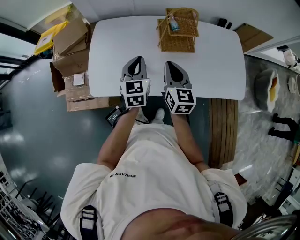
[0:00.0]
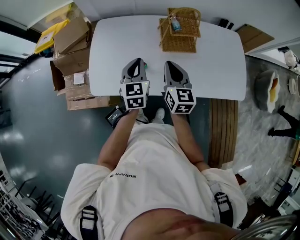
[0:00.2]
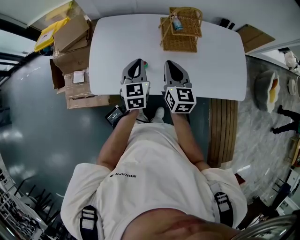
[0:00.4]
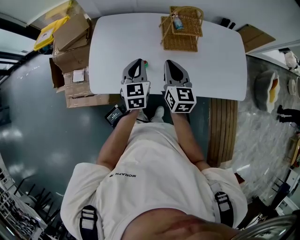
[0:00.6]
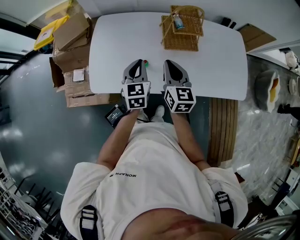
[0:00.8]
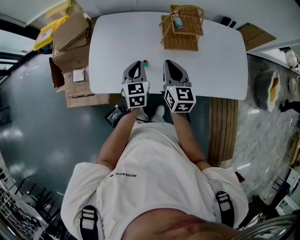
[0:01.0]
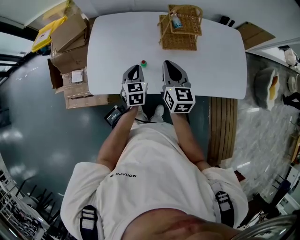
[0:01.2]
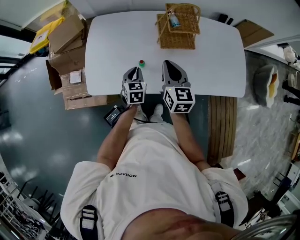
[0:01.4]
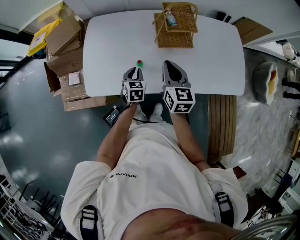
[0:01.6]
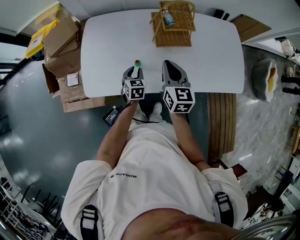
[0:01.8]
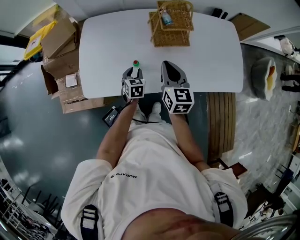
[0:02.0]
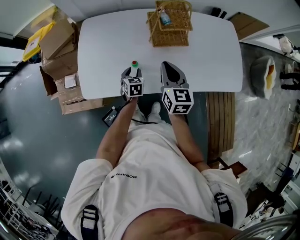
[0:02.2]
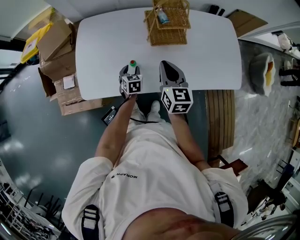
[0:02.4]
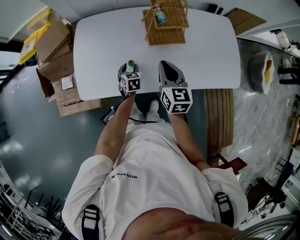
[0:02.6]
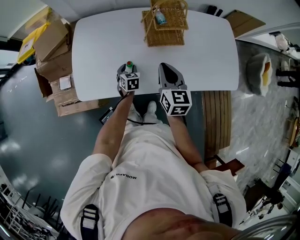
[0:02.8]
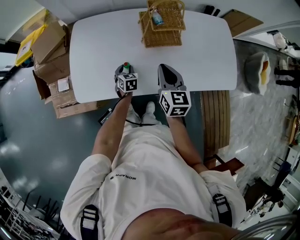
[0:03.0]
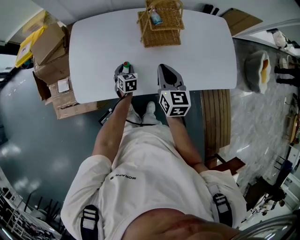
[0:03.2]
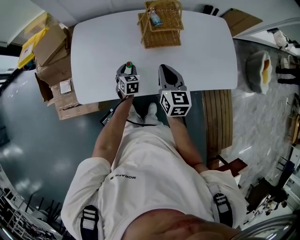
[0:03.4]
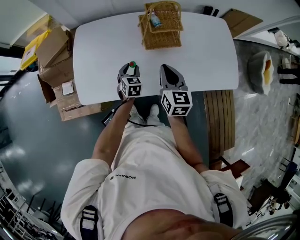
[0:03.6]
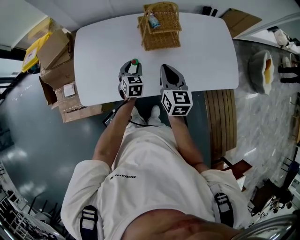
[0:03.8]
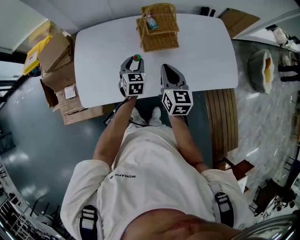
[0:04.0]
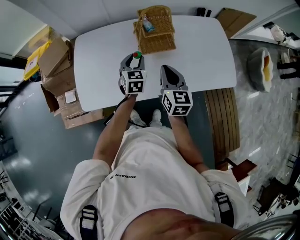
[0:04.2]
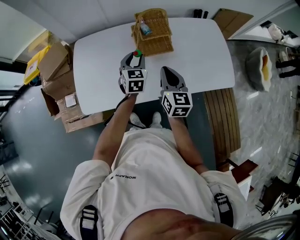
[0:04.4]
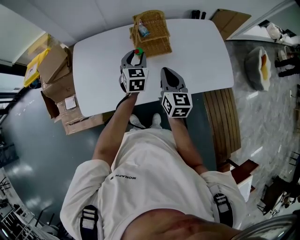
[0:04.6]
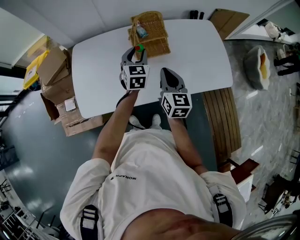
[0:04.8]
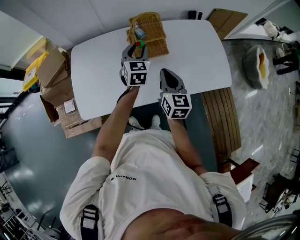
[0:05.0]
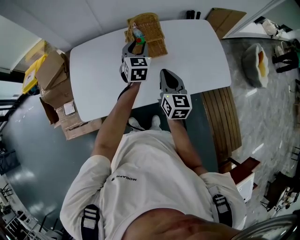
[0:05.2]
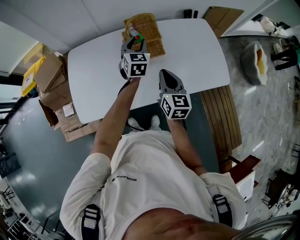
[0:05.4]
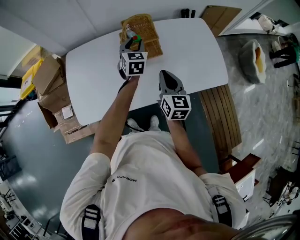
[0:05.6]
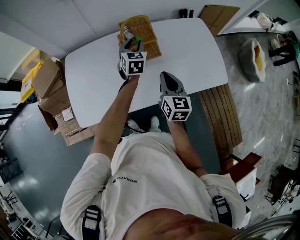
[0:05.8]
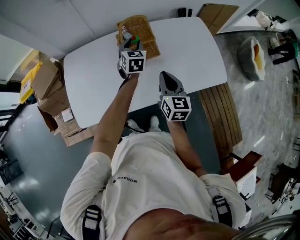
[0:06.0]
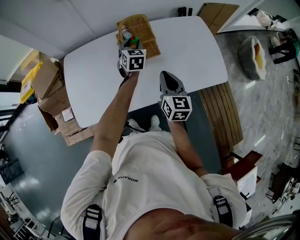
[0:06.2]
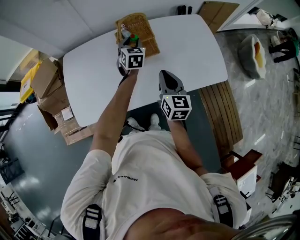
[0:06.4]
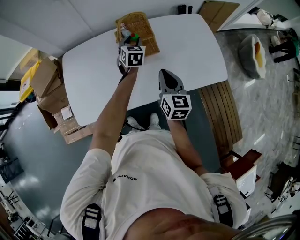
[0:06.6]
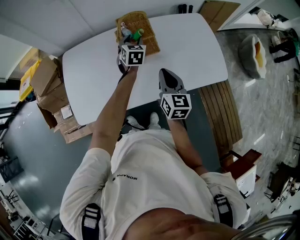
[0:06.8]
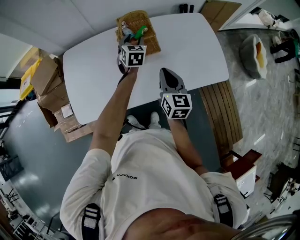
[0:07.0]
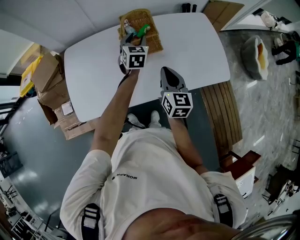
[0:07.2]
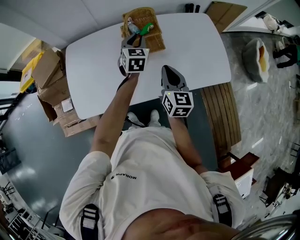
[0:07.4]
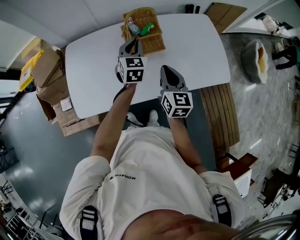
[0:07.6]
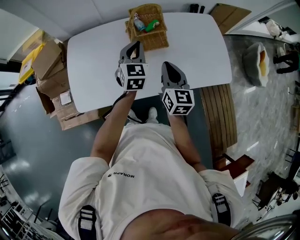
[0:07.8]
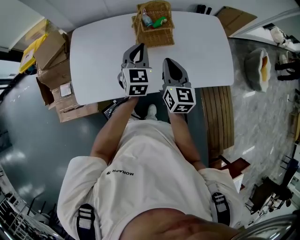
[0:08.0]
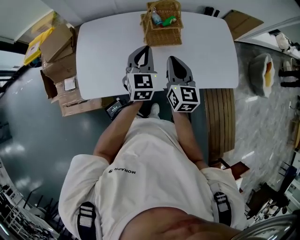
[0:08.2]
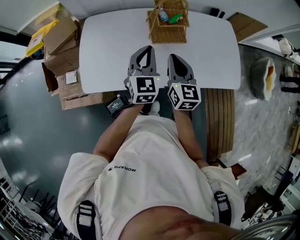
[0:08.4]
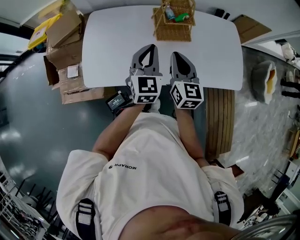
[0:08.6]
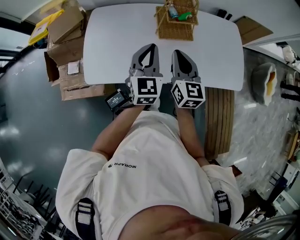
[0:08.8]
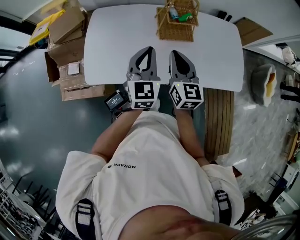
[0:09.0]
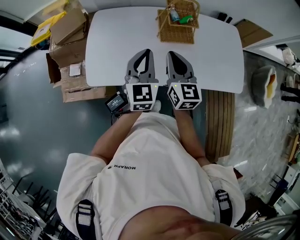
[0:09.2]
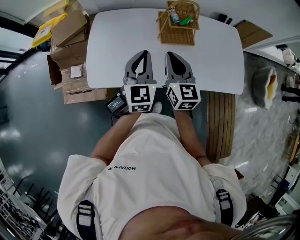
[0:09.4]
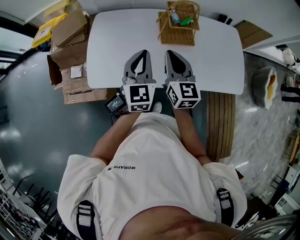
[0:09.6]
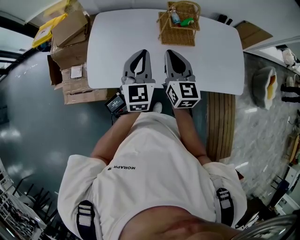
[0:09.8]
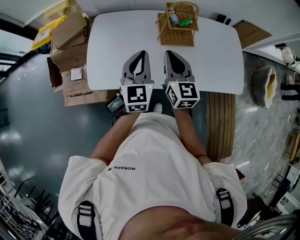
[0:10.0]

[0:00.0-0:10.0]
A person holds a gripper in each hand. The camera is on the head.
0:00.0 to 0:01.4: The left gripper is displaced downward by about 15 cm.
0:01.4 to 0:02.8: The left gripper shifts about 10 cm downward, and opens.
0:02.8 to 0:04.2: The left gripper heads upward and to the right, covering roughly 20 cm, and changes its angle by roughly 20 degrees; the right gripper shifts by approximately 5 cm.
0:04.2 to 0:05.8: The left gripper travels forward, to the right and upward by some 15 cm, while the right gripper travels to the right by some 5 cm.
0:05.8 to 0:07.2: The grippers stay close to where they were, moving slightly.
0:07.2 to 0:08.6: The left gripper shifts approximately 25 cm backward, to the left and upward, and closes up. The right gripper goes about 10 cm to the left.
0:08.6 to 0:10.0: The grippers both shift to the left by roughly 5 cm.

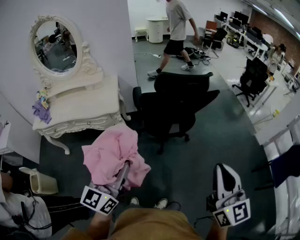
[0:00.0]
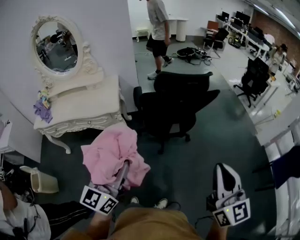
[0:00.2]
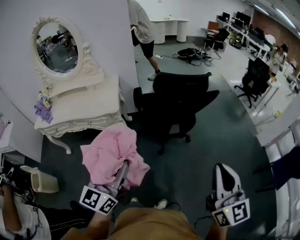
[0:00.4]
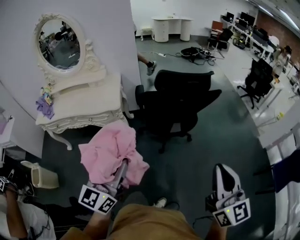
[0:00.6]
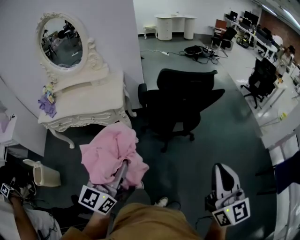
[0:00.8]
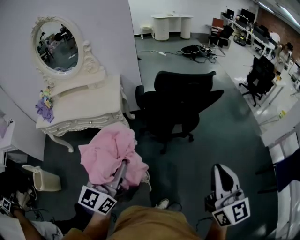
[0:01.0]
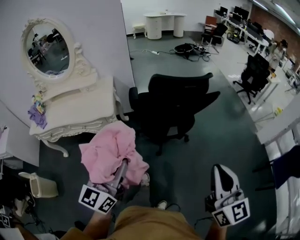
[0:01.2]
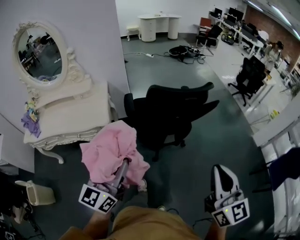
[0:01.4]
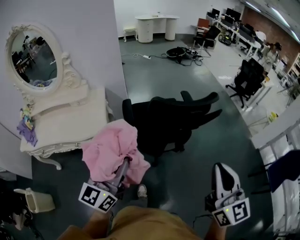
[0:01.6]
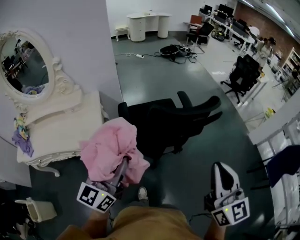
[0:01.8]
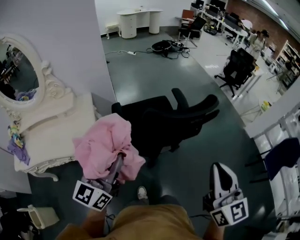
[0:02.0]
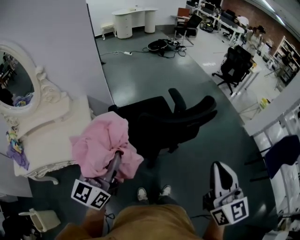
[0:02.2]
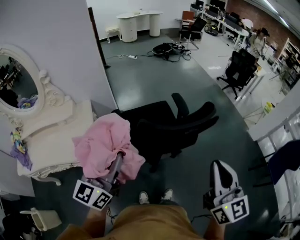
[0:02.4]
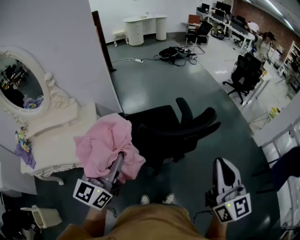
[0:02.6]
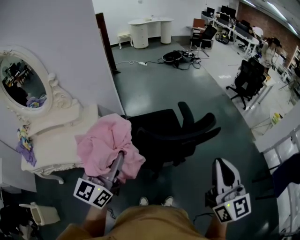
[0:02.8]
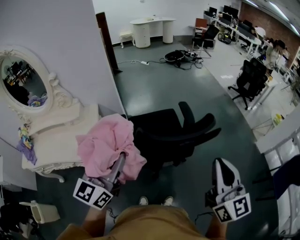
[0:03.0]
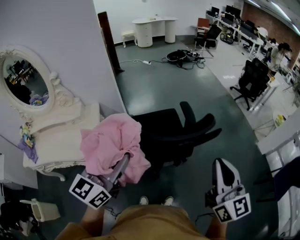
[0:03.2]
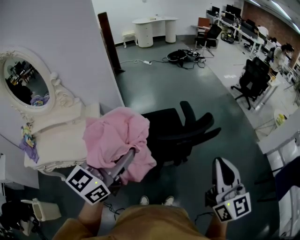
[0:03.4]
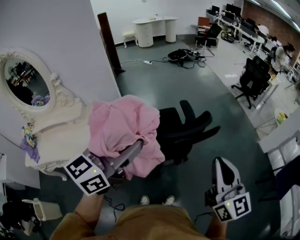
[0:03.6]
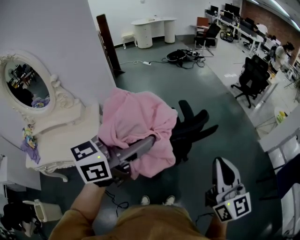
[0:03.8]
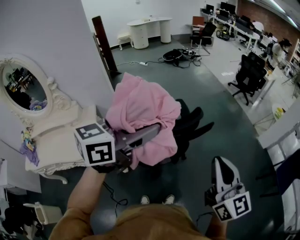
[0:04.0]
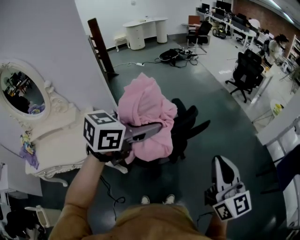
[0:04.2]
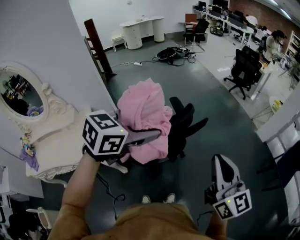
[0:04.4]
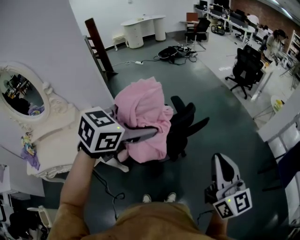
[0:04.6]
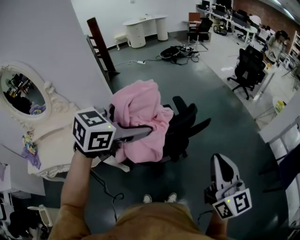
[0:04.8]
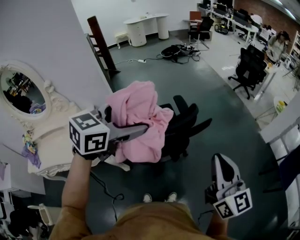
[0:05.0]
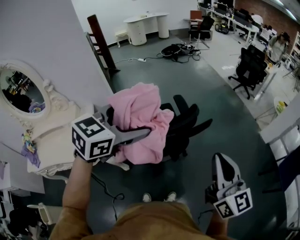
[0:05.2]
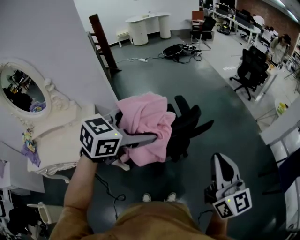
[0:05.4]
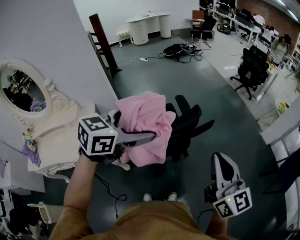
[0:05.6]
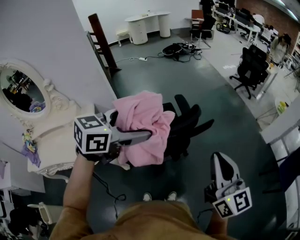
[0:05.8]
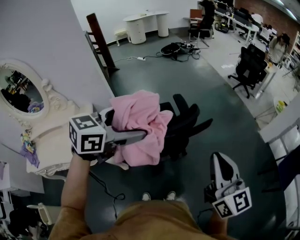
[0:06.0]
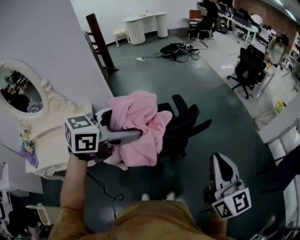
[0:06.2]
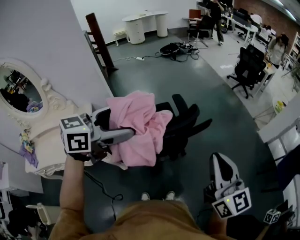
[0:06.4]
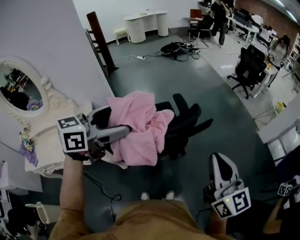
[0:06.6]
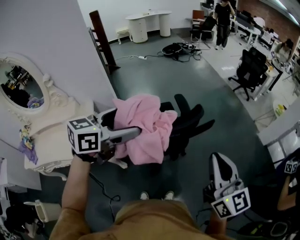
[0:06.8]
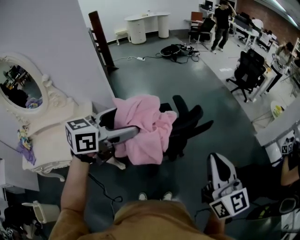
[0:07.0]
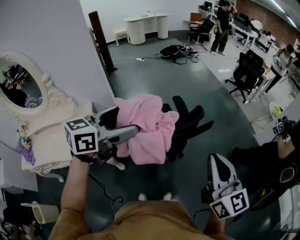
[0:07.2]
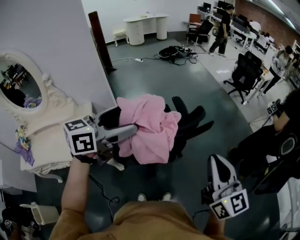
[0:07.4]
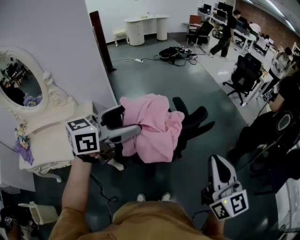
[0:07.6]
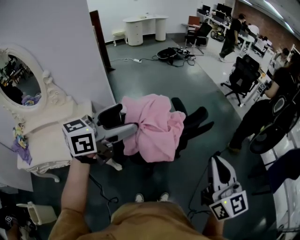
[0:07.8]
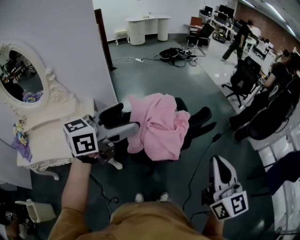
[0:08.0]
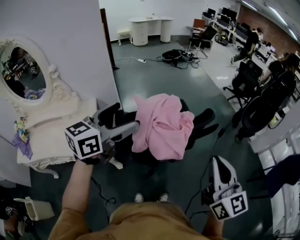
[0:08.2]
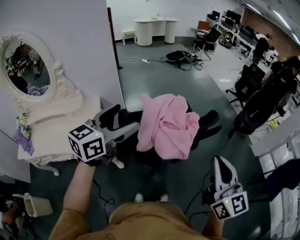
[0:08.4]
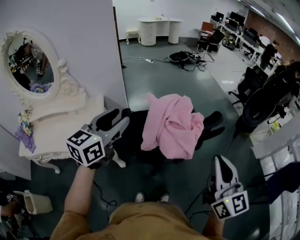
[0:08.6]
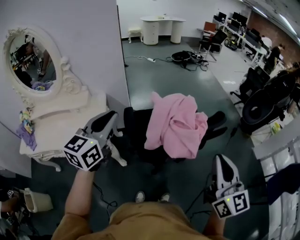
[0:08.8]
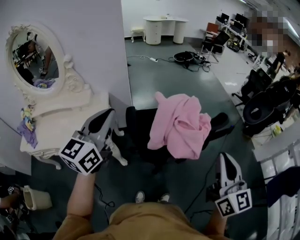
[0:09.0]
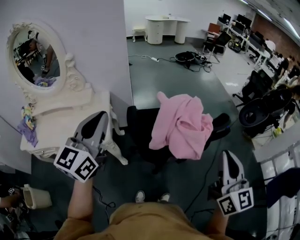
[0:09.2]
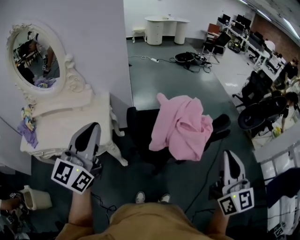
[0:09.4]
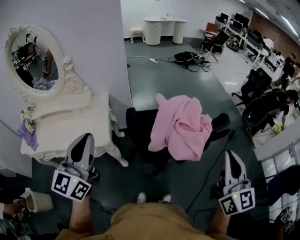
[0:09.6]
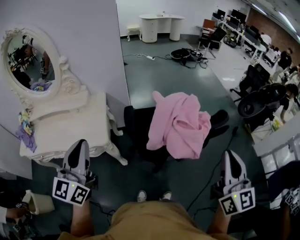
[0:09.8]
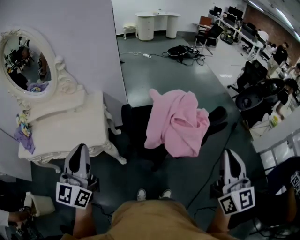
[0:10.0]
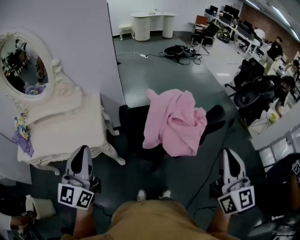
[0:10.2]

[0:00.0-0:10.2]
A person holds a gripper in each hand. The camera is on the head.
0:00.0 to 0:01.4: The two grippers go about 15 cm forward.
0:01.4 to 0:03.0: The grippers both shift forward by approximately 25 cm.
0:03.0 to 0:04.4: The left gripper is displaced to the right and forward by some 25 cm, points its fingers some 30 degrees further downward, and opens up, while the right gripper moves to the right, some 10 cm.
0:04.4 to 0:05.8: The left gripper goes roughly 5 cm to the left, while the right gripper ends up about 5 cm from where it was.
0:05.8 to 0:07.2: The left gripper moves to the left, about 5 cm.
0:07.2 to 0:08.8: The right gripper is displaced to the left by roughly 10 cm. The left gripper is displaced to the left and backward by approximately 20 cm, turns by about 30 degrees, and closes.
0:08.8 to 0:10.2: The left gripper travels backward and to the left by approximately 10 cm.

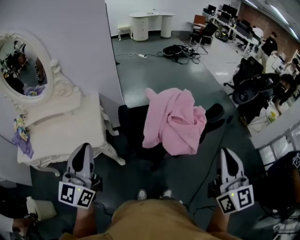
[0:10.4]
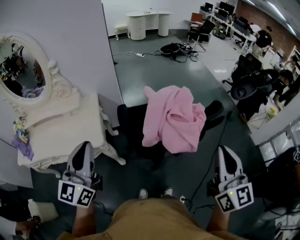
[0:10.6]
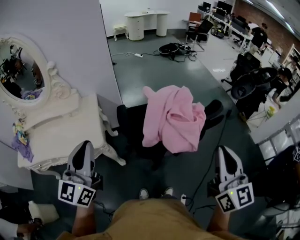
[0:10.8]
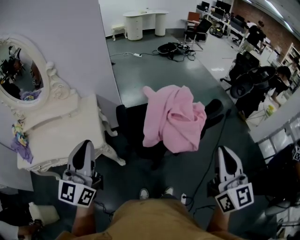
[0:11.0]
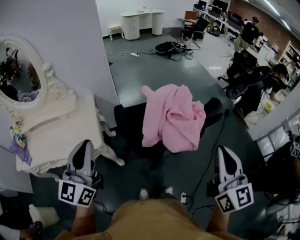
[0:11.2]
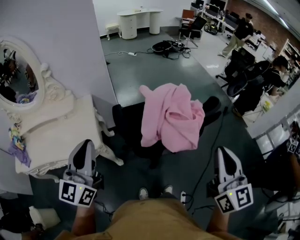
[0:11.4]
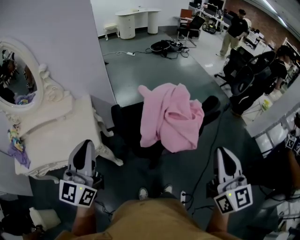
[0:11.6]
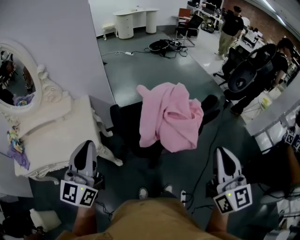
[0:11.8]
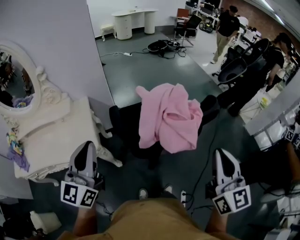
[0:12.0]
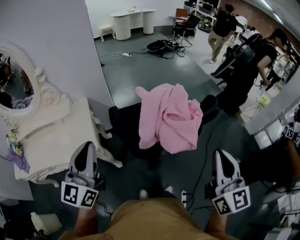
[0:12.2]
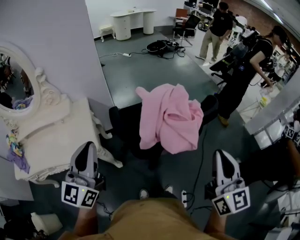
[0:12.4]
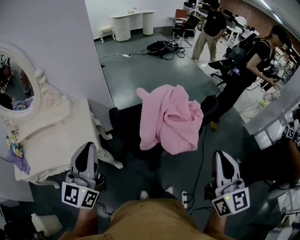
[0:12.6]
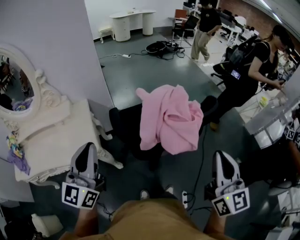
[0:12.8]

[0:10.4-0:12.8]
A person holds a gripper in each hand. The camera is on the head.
0:10.4 to 0:11.6: The grippers make only small movements.
0:11.6 to 0:12.8: Neither gripper changes place.

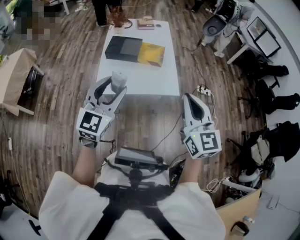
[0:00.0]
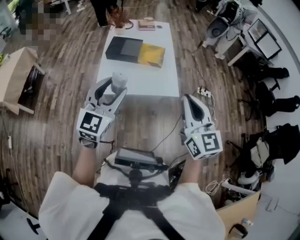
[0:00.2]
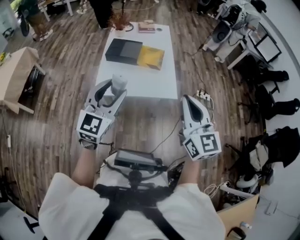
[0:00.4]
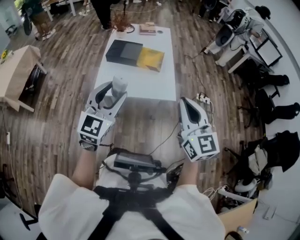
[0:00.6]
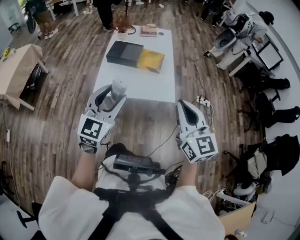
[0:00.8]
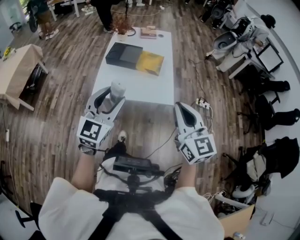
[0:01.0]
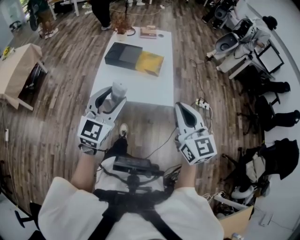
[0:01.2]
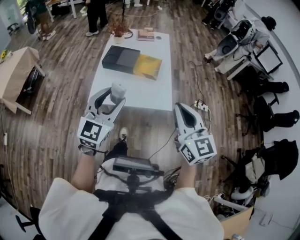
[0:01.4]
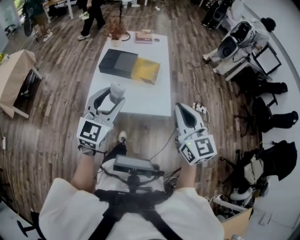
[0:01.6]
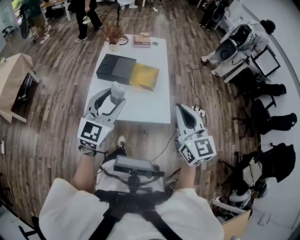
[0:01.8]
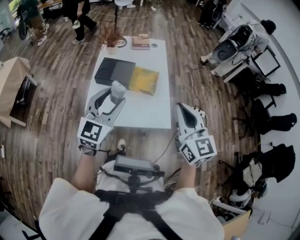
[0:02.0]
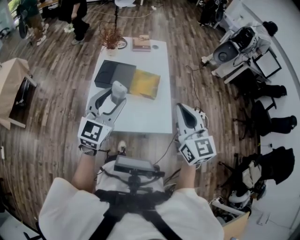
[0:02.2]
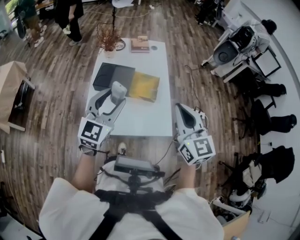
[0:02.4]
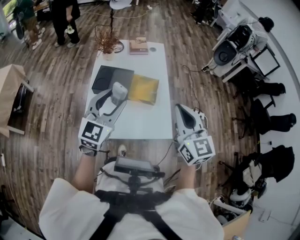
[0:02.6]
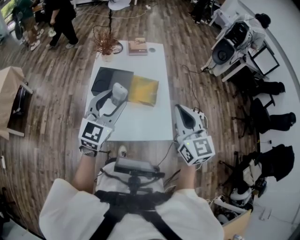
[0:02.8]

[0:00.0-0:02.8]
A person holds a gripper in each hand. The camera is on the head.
0:00.0 to 0:01.4: The left gripper changes place by some 5 cm.
0:01.4 to 0:02.8: Both grippers travel together forward, about 25 cm.
